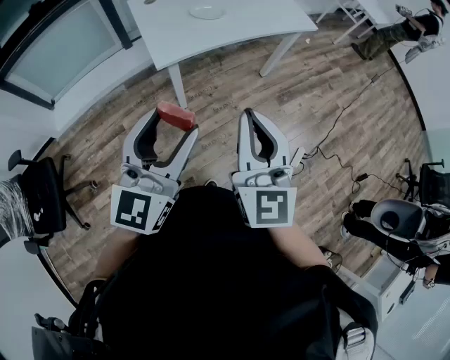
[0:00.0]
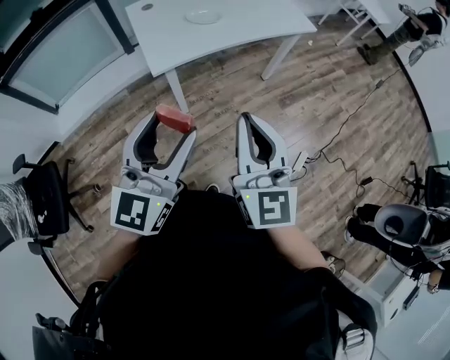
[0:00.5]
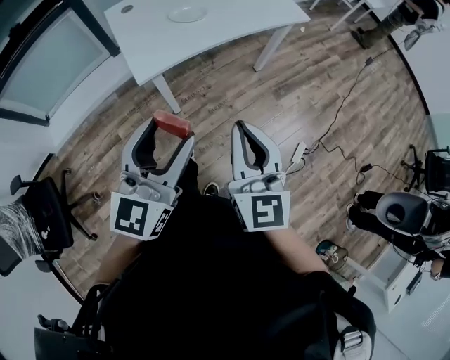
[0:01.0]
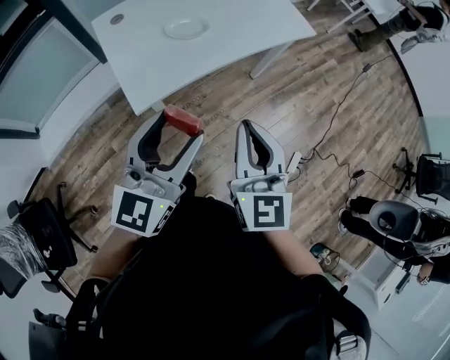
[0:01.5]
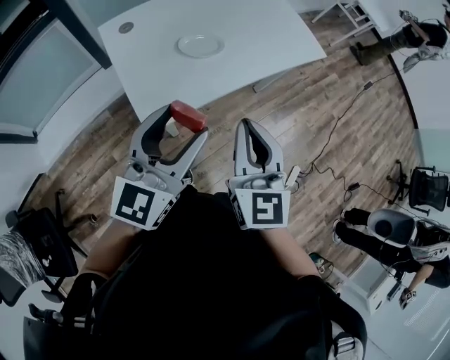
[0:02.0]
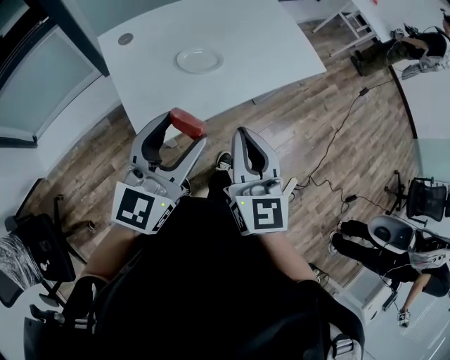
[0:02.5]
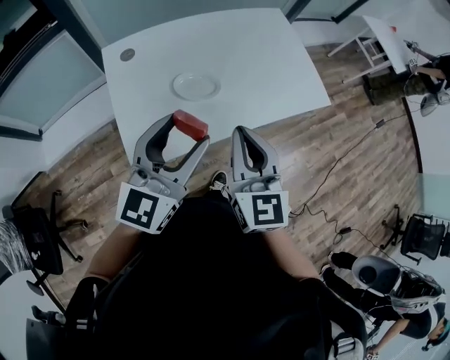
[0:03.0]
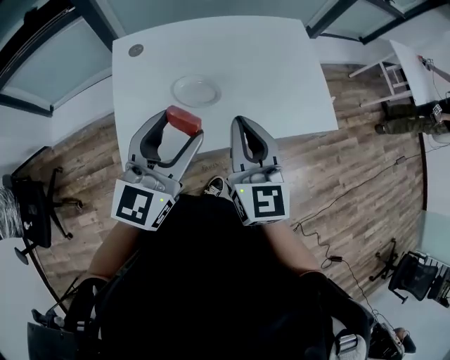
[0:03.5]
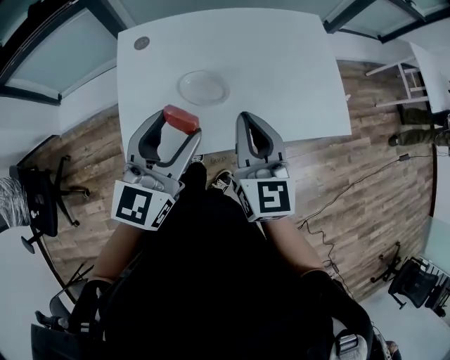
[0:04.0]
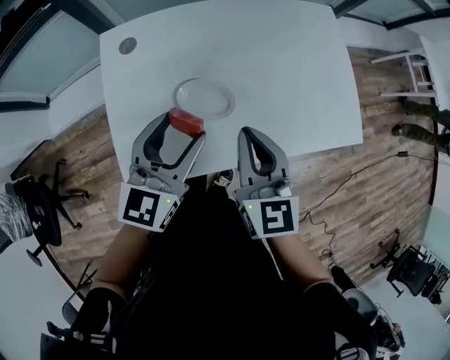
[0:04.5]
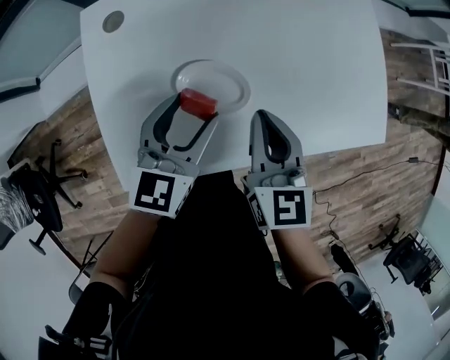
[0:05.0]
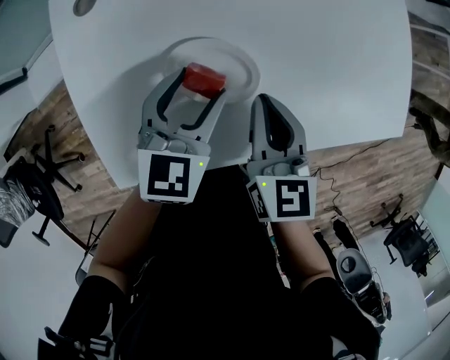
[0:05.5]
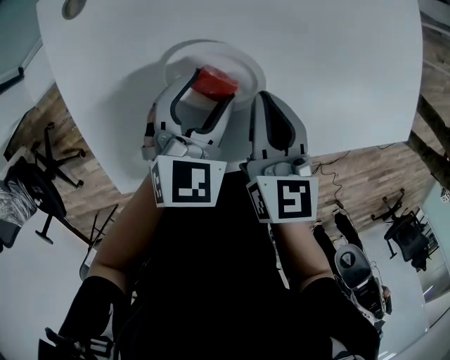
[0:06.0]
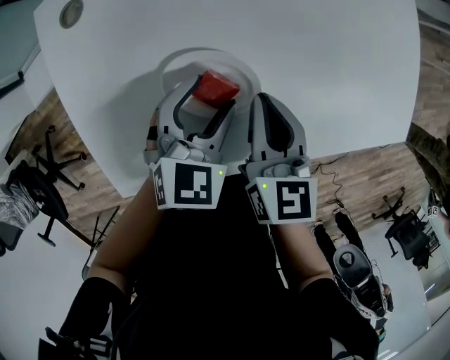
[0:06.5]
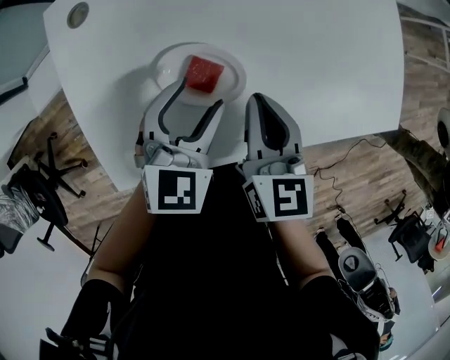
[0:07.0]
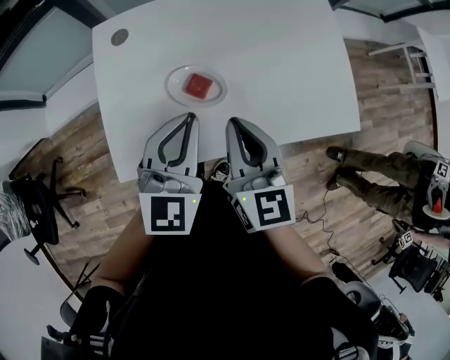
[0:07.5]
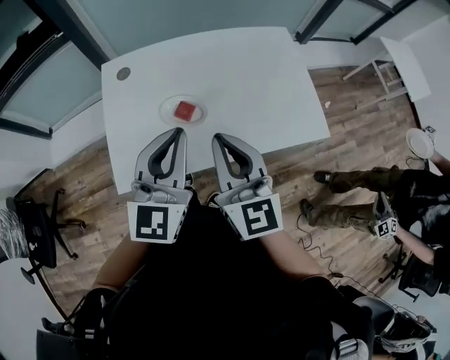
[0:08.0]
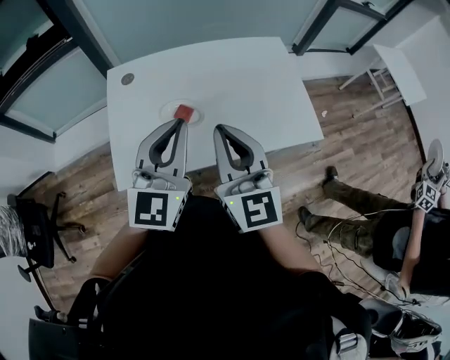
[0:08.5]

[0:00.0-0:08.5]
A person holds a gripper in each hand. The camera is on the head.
0.0 to 2.0 s: The grippers both shift forward by some 25 cm.
2.0 to 4.0 s: The right gripper ends up approximately 25 cm from where it was, and turns by some 30 degrees; the left gripper ends up roughly 20 cm from where it was, and rotates approximately 30 degrees.
4.0 to 6.5 s: Both grippers move downward and forward, approximately 25 cm. The right gripper turns by roughly 30 degrees; the left gripper points its fingers about 40 degrees further downward.
6.5 to 8.5 s: Both grippers move upward and backward, roughly 35 cm. The left gripper tips its fingers upward by approximately 50 degrees, and closes its fingers. The right gripper tips its fingers upward by about 40 degrees.

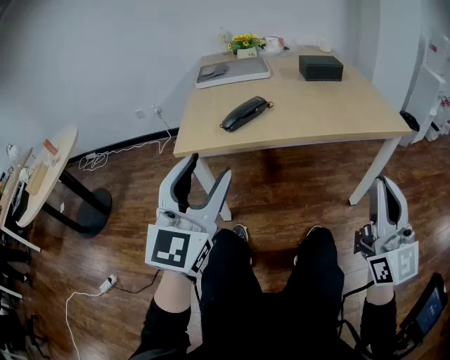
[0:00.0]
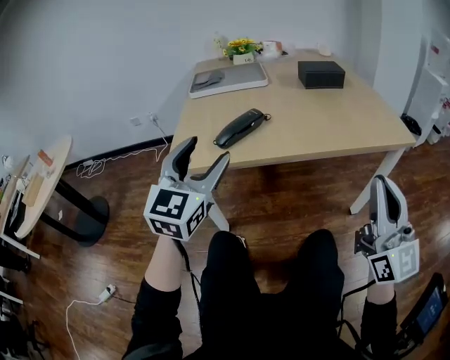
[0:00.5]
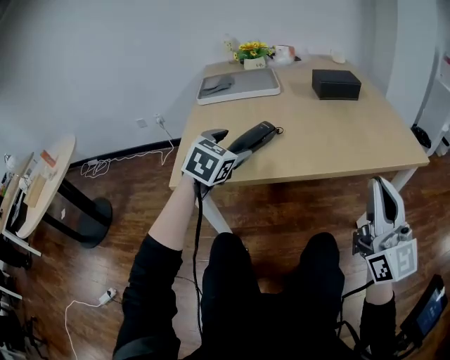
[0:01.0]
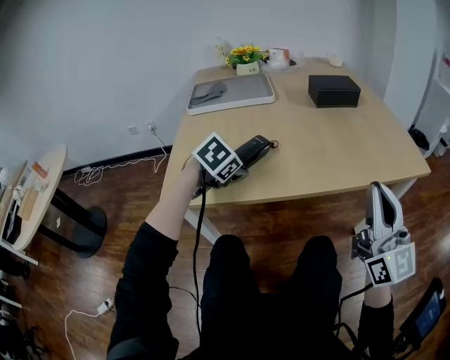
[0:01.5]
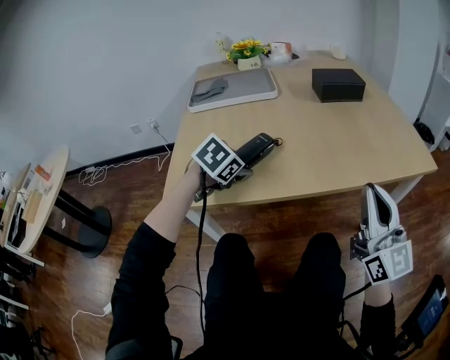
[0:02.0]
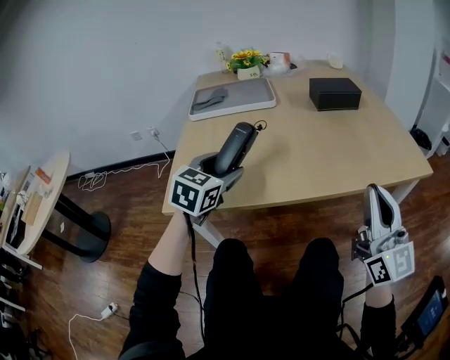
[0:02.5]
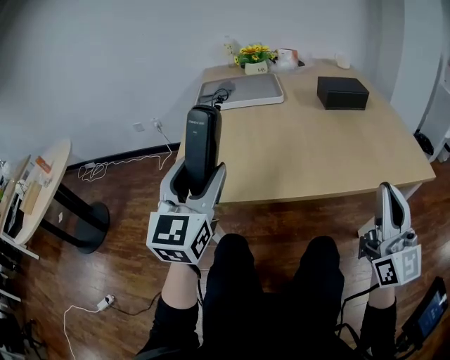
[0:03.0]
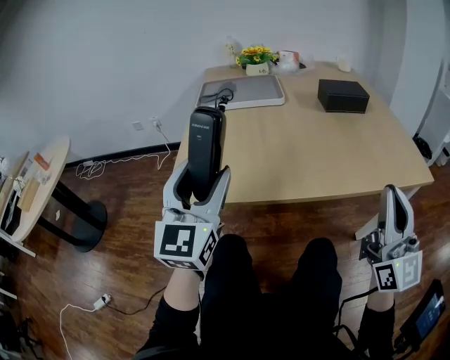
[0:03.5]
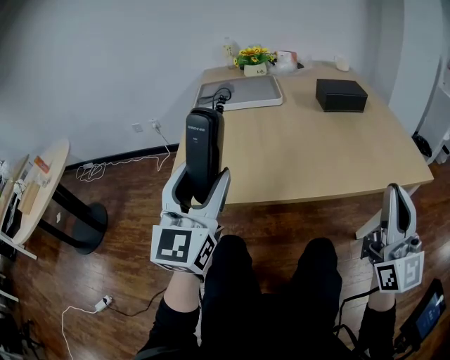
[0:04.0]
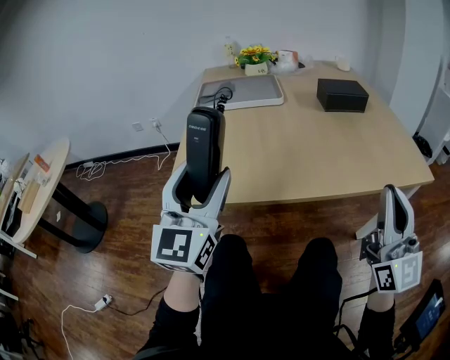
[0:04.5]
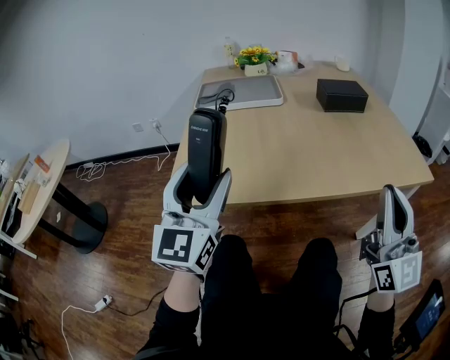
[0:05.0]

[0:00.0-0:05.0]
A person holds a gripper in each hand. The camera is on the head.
0.0 to 2.5 s: The right gripper is displaced forward by about 20 cm. Meanwhile the left gripper heads forward, covering some 30 cm, and angles its fingers downward, by about 40 degrees.
2.5 to 5.0 s: The left gripper shifts roughly 15 cm backward and upward, and tips its fingers upward by approximately 40 degrees.

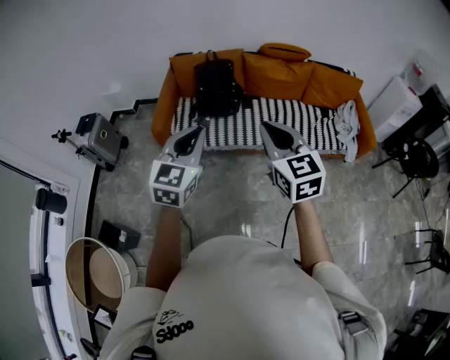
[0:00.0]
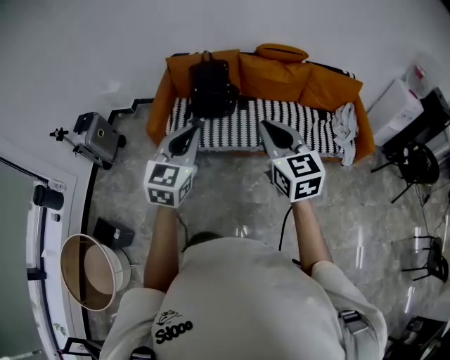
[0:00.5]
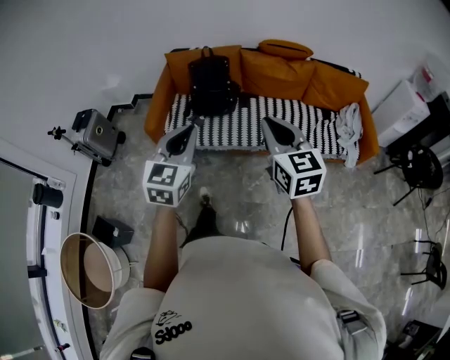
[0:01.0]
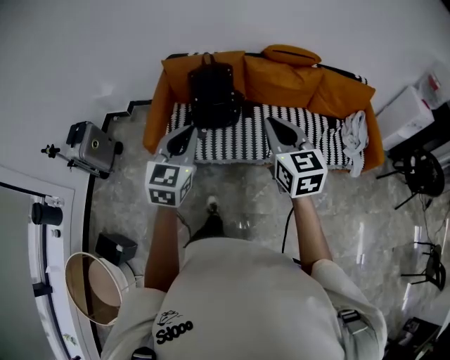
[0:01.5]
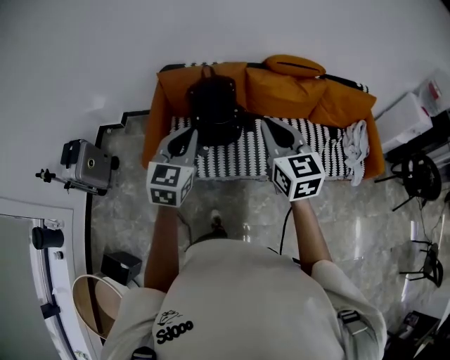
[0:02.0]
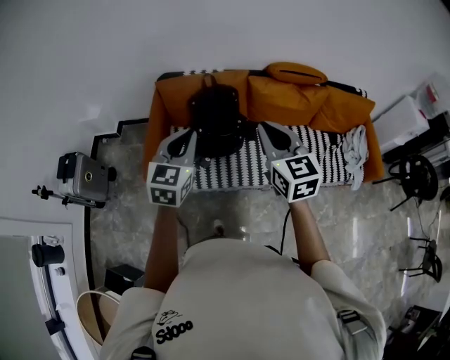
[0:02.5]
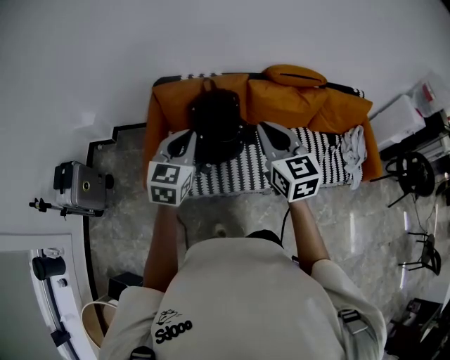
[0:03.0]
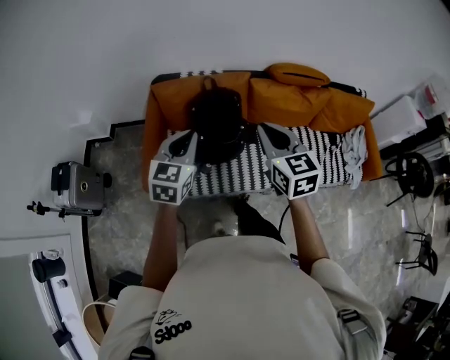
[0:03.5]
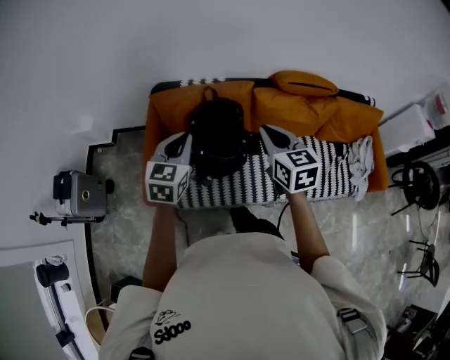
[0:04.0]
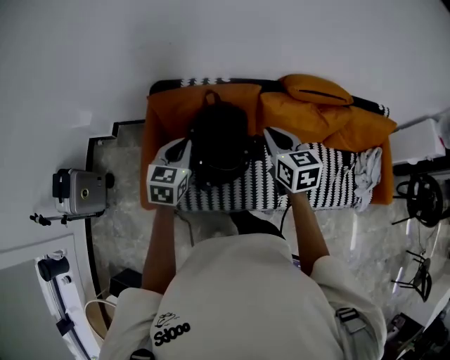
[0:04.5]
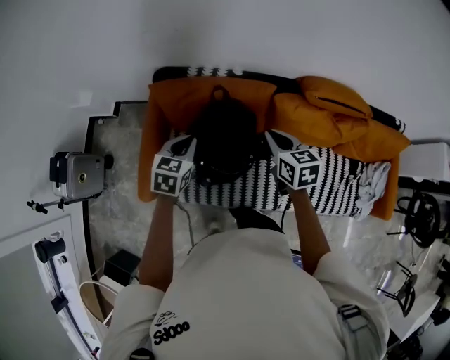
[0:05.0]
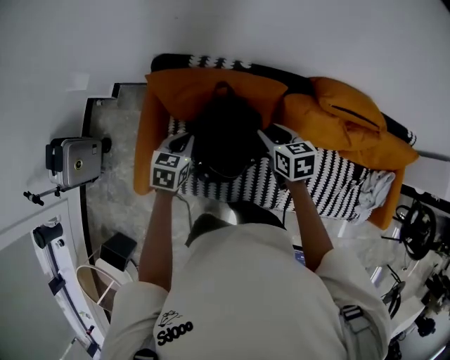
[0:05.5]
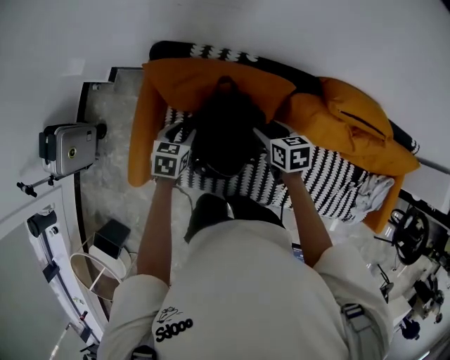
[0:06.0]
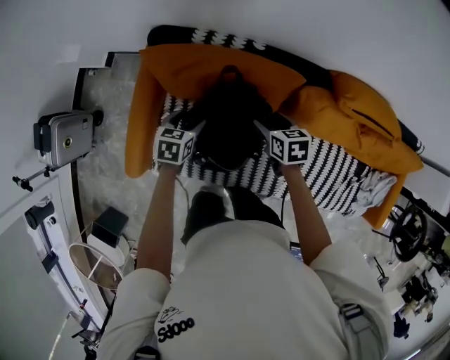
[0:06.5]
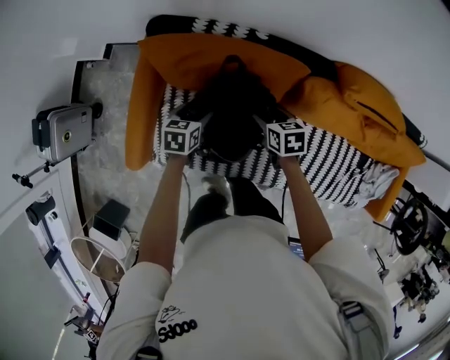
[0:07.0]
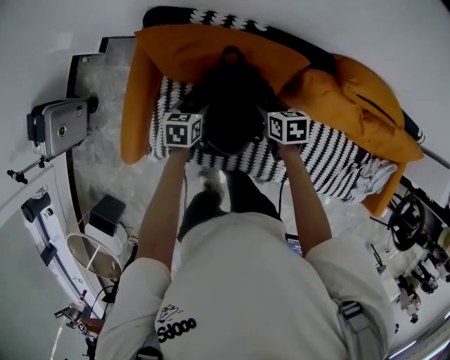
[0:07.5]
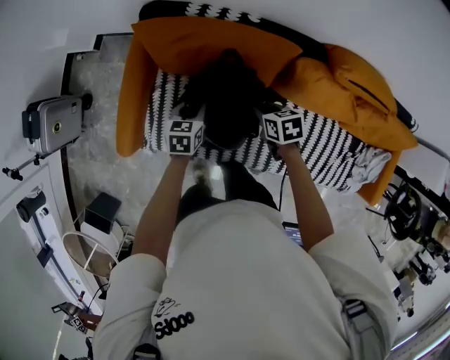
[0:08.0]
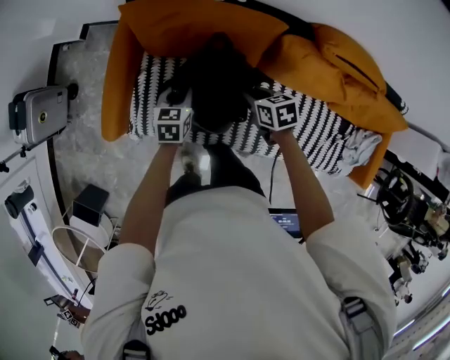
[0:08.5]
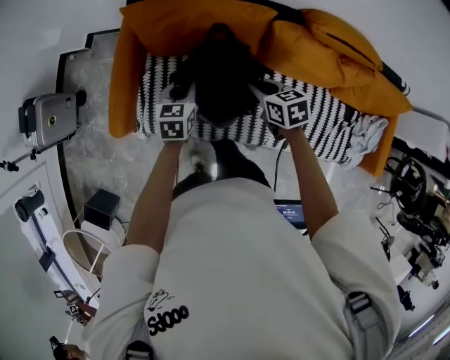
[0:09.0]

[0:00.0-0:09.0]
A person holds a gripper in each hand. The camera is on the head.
0.0 to 2.0 s: The two grippers go some 35 cm forward.
2.0 to 4.5 s: The grippers both shift forward and downward by some 35 cm.
4.5 to 7.0 s: Both grippers move downward and forward, about 35 cm. The right gripper swivels about 40 degrees, and opens; the left gripper changes its angle by approximately 30 degrees, and opens up.
7.0 to 9.0 s: Both grippers travel together backward and upward, approximately 15 cm. The right gripper closes its fingers. The left gripper closes up.

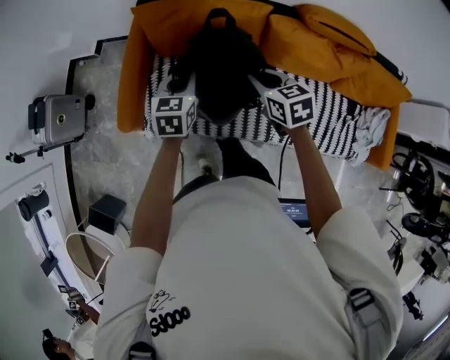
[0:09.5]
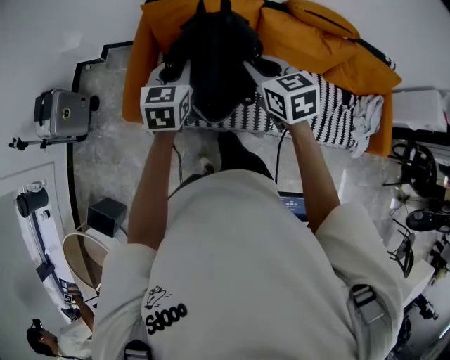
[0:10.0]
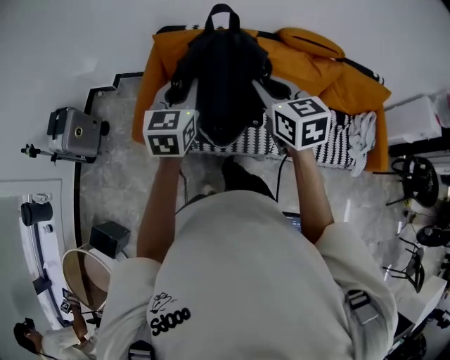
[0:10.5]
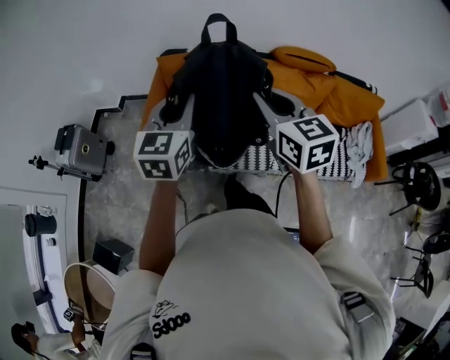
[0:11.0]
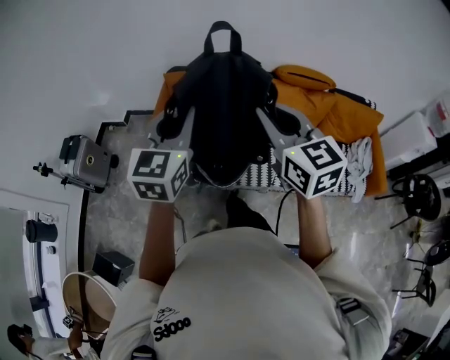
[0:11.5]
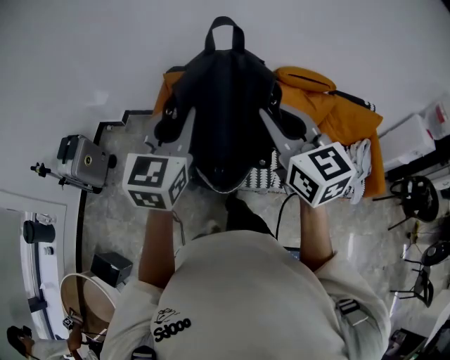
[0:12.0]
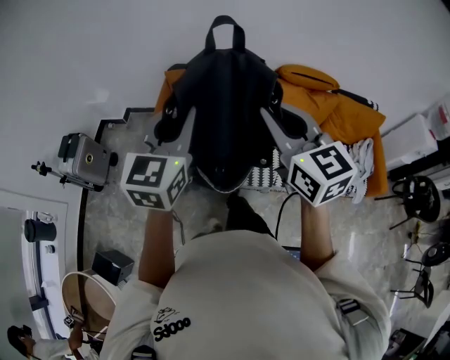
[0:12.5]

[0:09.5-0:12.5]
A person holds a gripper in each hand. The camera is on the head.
9.5 to 11.0 s: The two grippers go some 35 cm upward and backward. The right gripper rotates about 30 degrees. The left gripper swivels approximately 30 degrees.
11.0 to 12.5 s: The two grippers go about 5 cm upward.

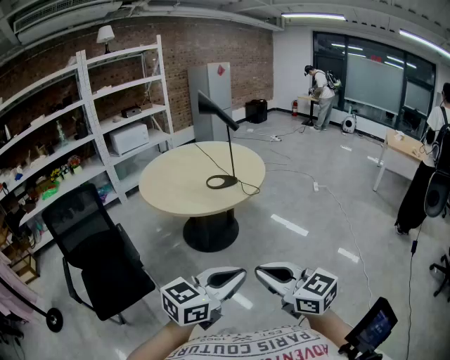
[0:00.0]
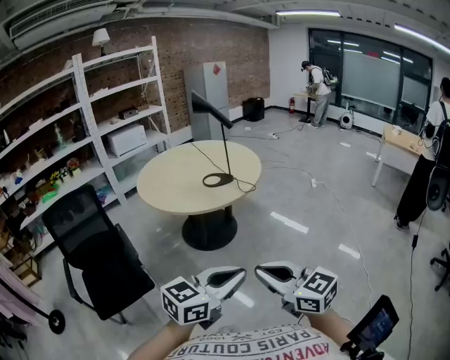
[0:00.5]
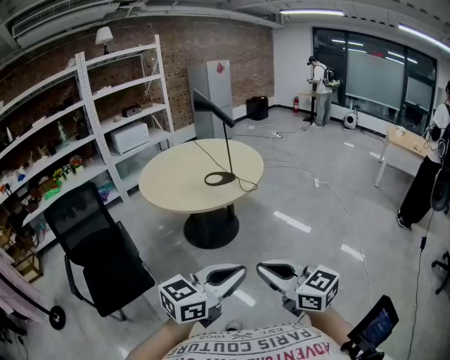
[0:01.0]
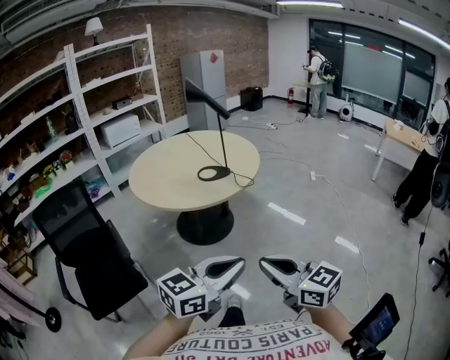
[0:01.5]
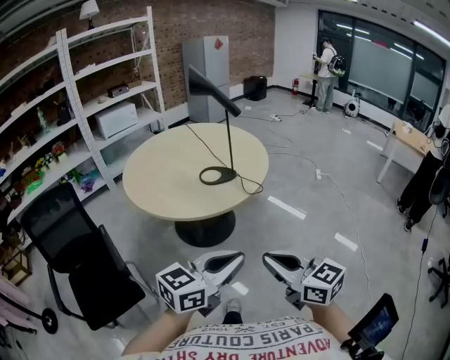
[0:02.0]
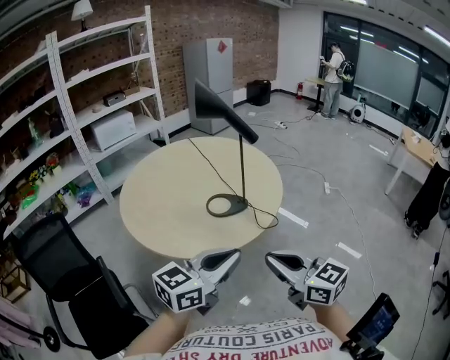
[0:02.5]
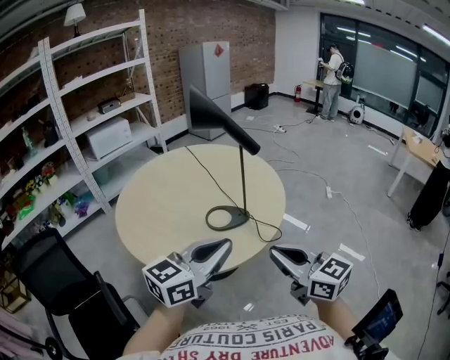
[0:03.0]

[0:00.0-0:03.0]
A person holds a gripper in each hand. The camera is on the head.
0.0 to 1.5 s: The left gripper shifts by some 5 cm. Meanwhile the right gripper moves approximately 5 cm.
1.5 to 3.0 s: The two grippers go roughly 40 cm forward.
